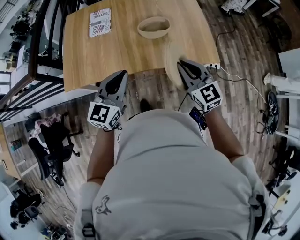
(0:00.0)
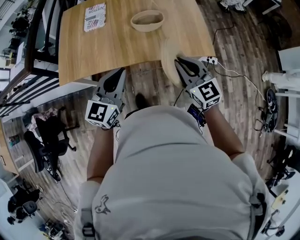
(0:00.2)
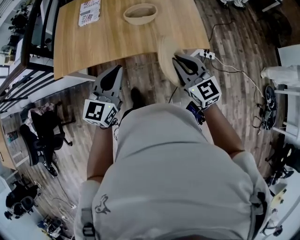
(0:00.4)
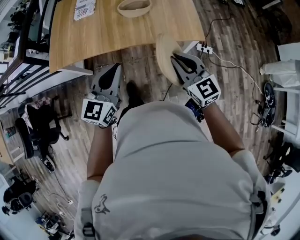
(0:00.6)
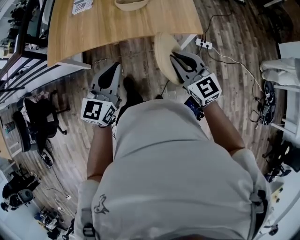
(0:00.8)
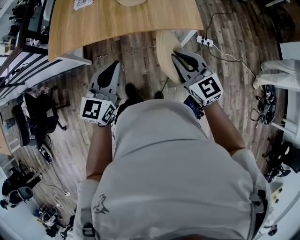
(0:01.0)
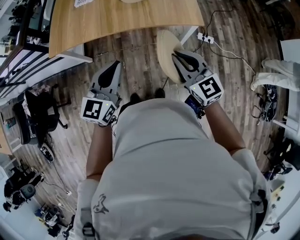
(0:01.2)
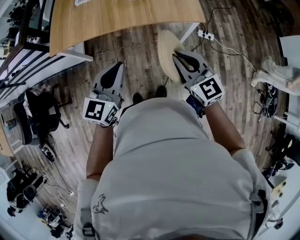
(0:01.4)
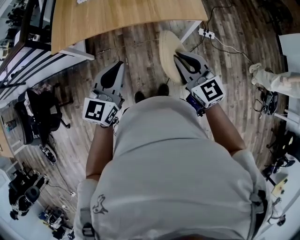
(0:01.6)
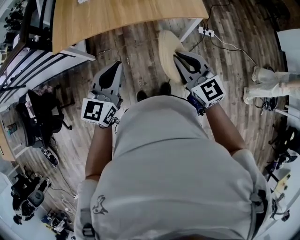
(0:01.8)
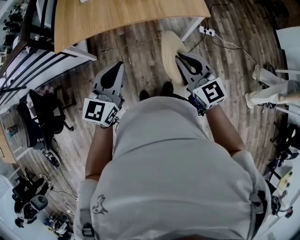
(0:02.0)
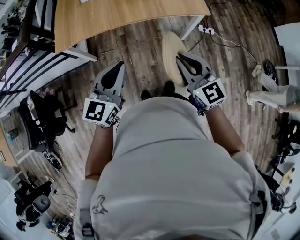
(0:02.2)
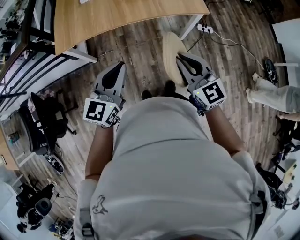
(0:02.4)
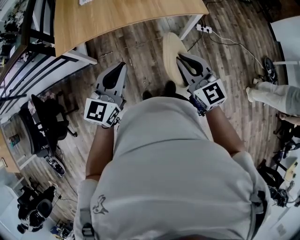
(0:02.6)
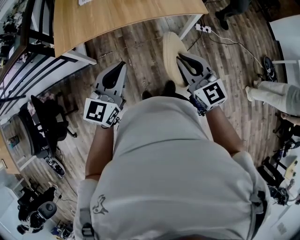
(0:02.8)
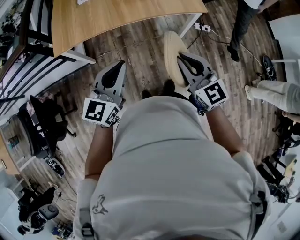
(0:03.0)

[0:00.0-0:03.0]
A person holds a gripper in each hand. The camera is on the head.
0:00.0 to 0:01.6: The grippers both shift backward by about 25 cm.
0:01.6 to 0:03.0: The right gripper heads to the left and backward, covering roughly 10 cm. Meanwhile the left gripper goes roughly 10 cm to the left.

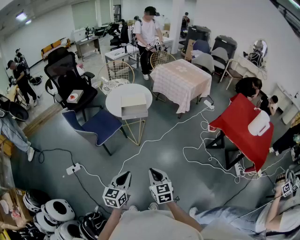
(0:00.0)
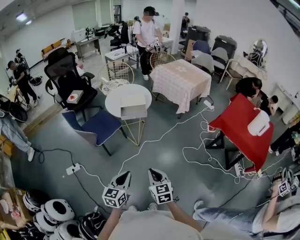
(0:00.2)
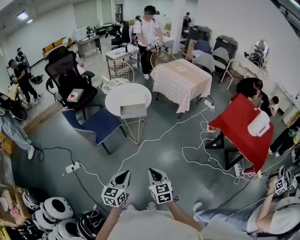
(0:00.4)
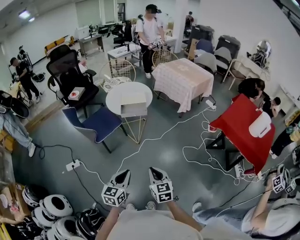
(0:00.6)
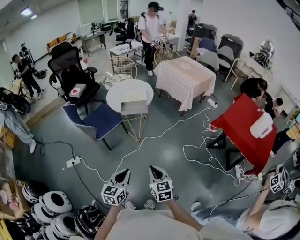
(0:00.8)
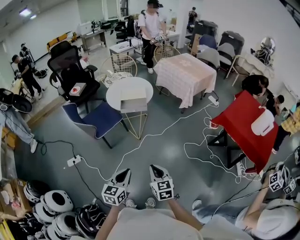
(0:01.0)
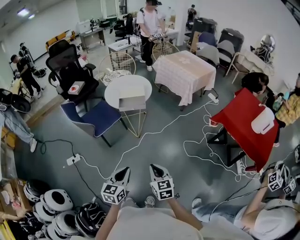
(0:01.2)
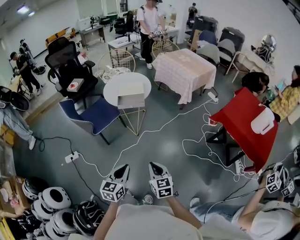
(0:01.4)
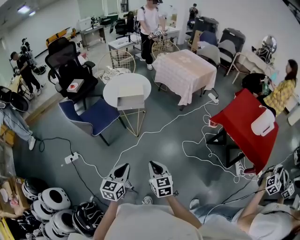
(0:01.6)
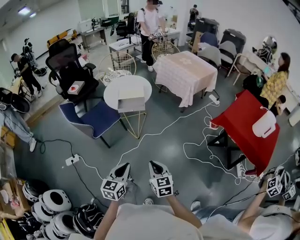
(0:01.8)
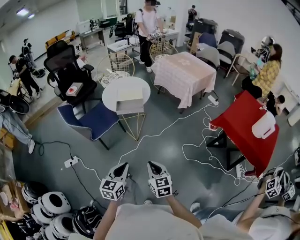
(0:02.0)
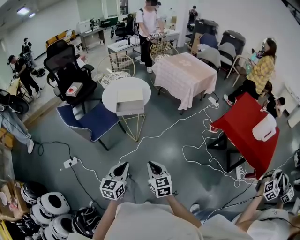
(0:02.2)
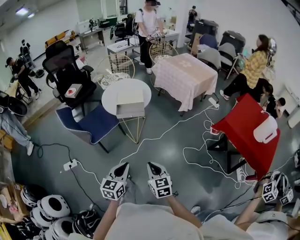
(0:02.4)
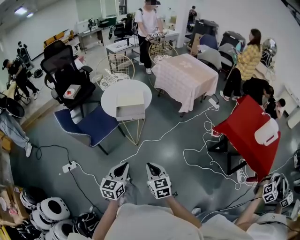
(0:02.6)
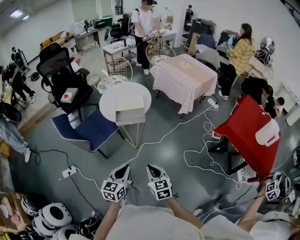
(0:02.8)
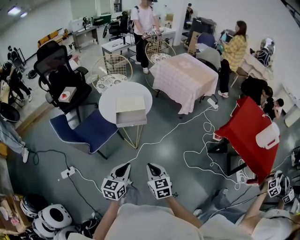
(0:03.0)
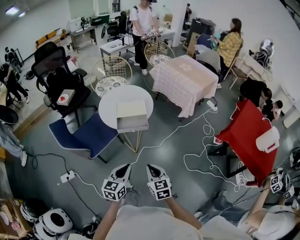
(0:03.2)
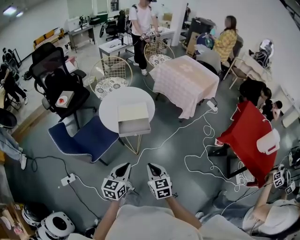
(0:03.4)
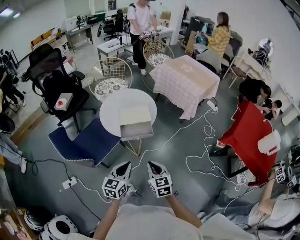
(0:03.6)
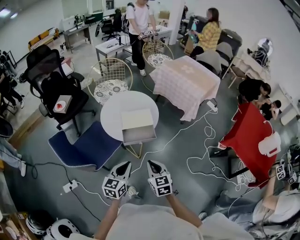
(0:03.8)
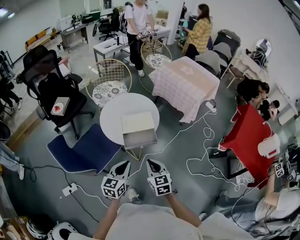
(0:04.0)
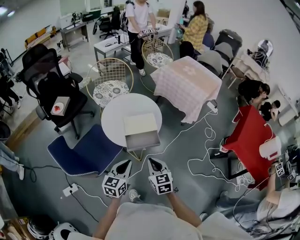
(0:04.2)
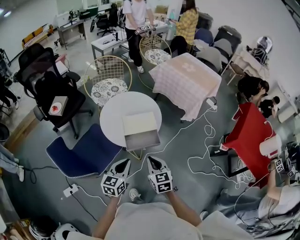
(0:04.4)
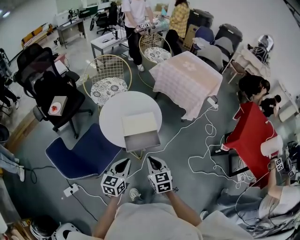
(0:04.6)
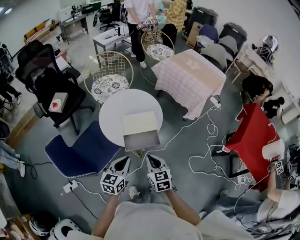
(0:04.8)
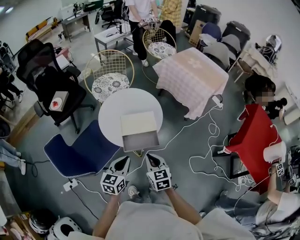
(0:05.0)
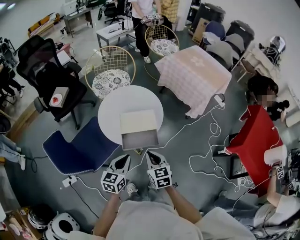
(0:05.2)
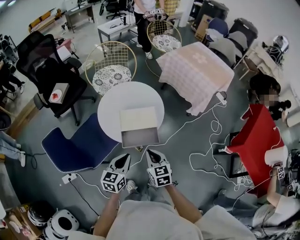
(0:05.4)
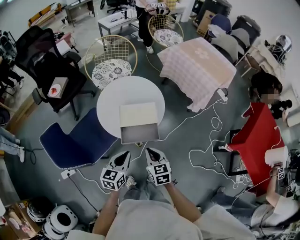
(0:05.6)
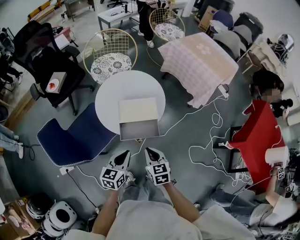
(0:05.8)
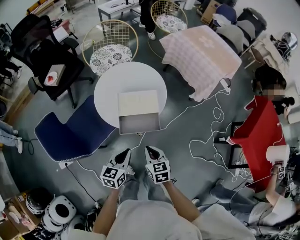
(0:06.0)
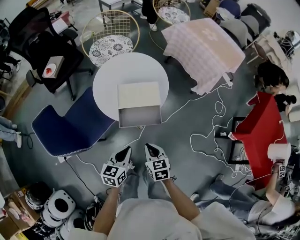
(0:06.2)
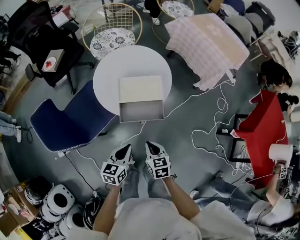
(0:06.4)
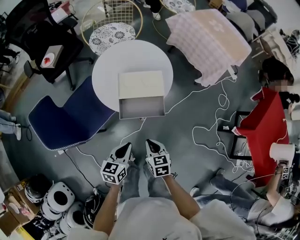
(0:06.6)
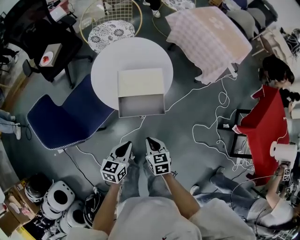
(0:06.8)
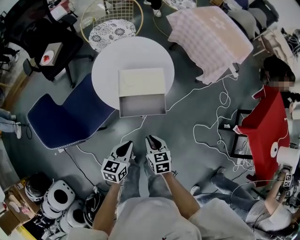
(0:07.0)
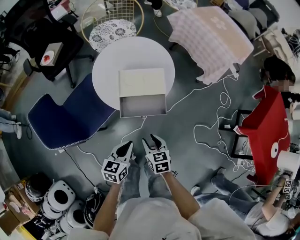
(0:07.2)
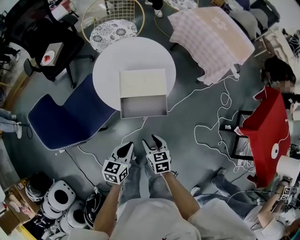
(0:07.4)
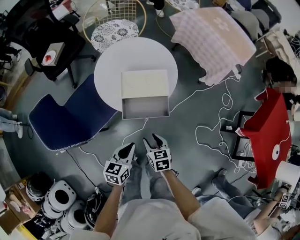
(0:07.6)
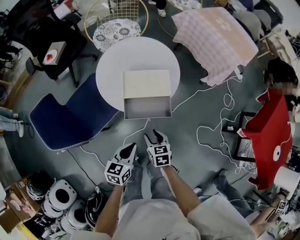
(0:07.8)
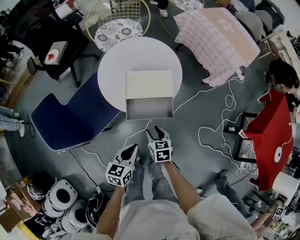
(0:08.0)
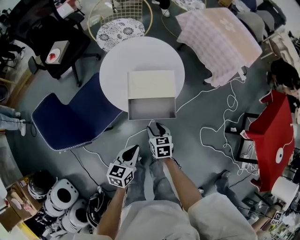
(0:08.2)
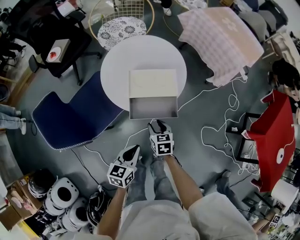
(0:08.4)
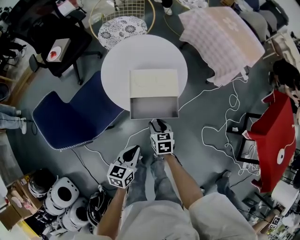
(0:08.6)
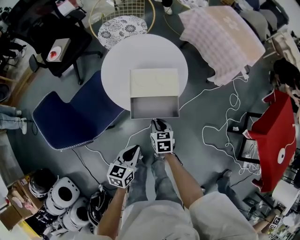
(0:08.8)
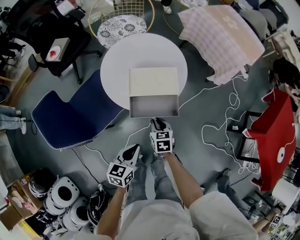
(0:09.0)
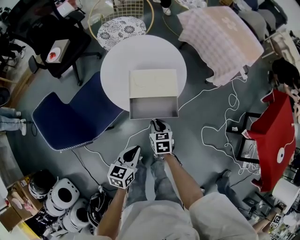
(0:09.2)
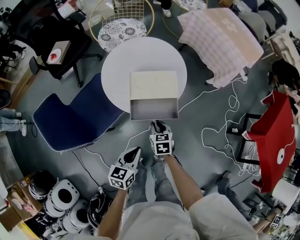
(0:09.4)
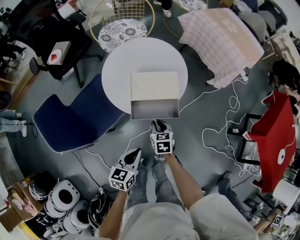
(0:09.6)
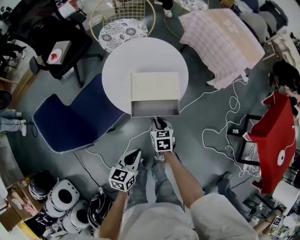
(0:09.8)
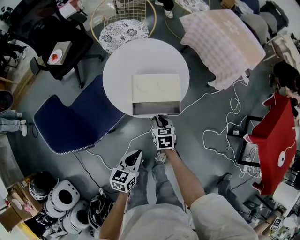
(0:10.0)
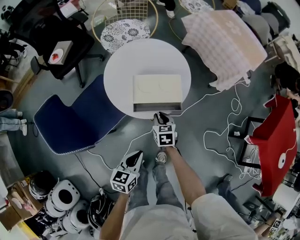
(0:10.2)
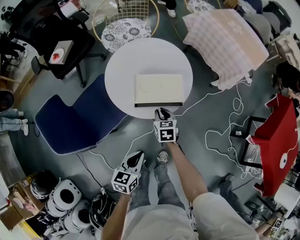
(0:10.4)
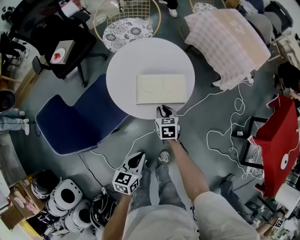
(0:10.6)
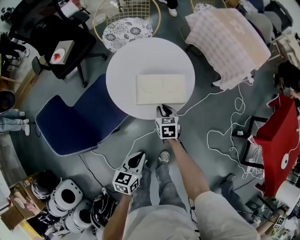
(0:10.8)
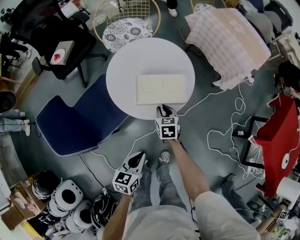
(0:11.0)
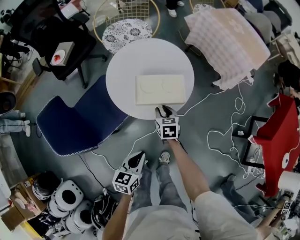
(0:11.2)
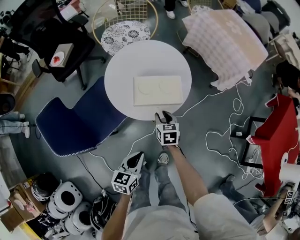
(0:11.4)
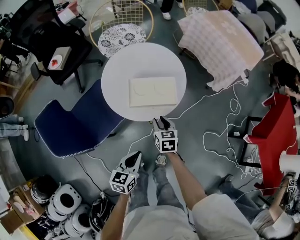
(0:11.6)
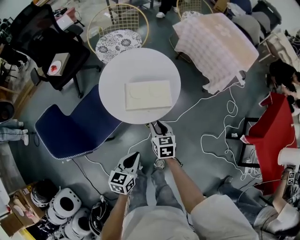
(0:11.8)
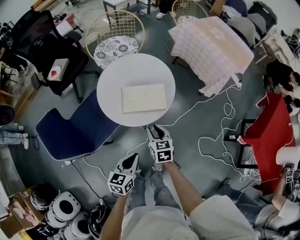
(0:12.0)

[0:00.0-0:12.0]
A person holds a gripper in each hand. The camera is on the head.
0:00.0 to 0:01.6: The grippers both shift to the right by approximately 5 cm.
0:01.6 to 0:03.0: Both grippers travel together forward, roughly 15 cm.
0:03.0 to 0:04.4: The grippers both shift forward and to the left by some 25 cm.
0:04.4 to 0:06.0: Both grippers move downward, roughly 10 cm.
0:06.0 to 0:07.6: The right gripper moves downward, roughly 10 cm, and opens up. Meanwhile the left gripper is displaced downward by about 5 cm.
0:07.6 to 0:09.0: The right gripper heads forward, covering about 10 cm, and closes.
0:09.0 to 0:10.4: The right gripper goes roughly 10 cm forward.
0:10.4 to 0:12.0: The right gripper travels upward and backward by some 10 cm.

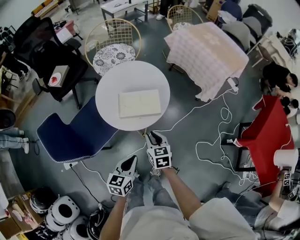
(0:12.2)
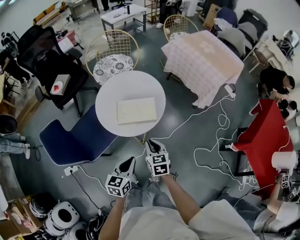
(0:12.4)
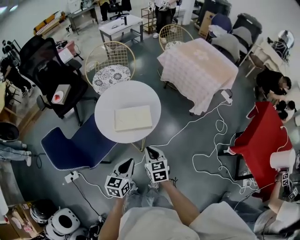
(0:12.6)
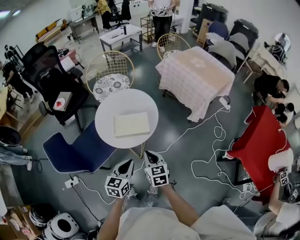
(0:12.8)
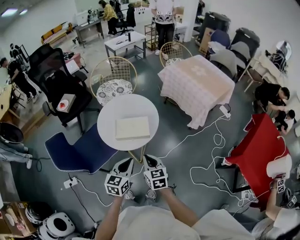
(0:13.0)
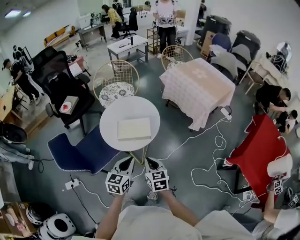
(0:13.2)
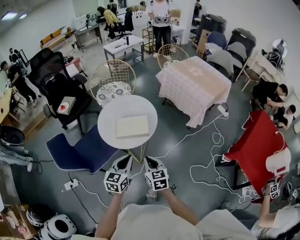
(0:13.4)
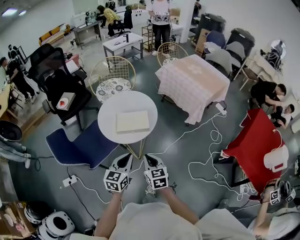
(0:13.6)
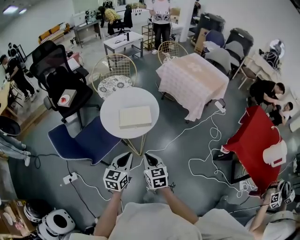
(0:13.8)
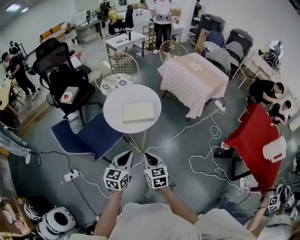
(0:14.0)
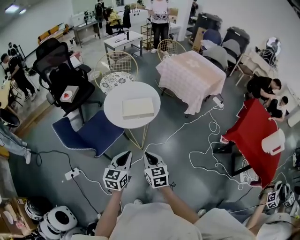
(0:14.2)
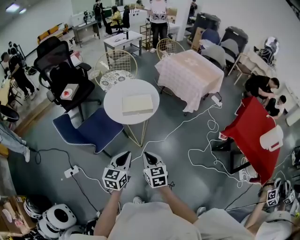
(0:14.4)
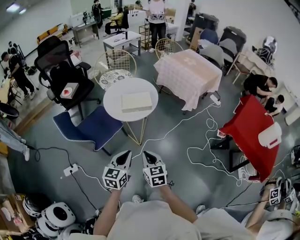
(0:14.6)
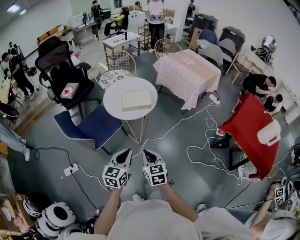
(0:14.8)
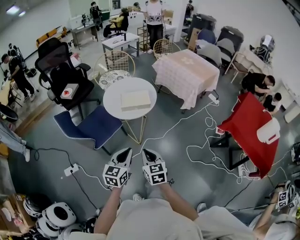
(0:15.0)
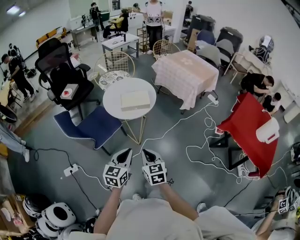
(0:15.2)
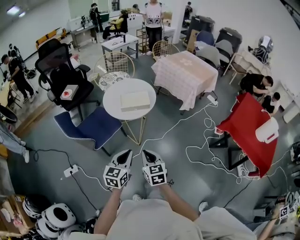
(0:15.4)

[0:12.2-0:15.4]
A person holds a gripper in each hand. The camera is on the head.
0:12.2 to 0:13.8: The right gripper moves backward and upward, some 20 cm, and closes its fingers, while the left gripper shifts some 10 cm upward.
0:13.8 to 0:15.4: The two grippers go approximately 15 cm backward.

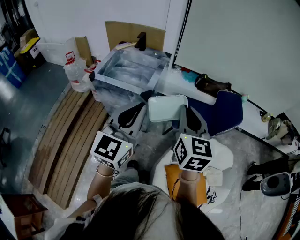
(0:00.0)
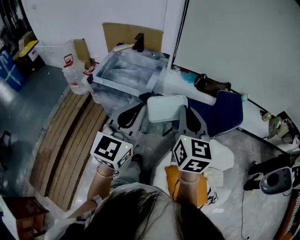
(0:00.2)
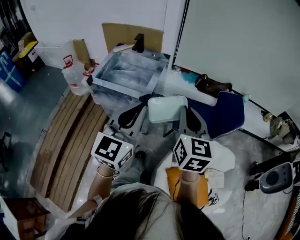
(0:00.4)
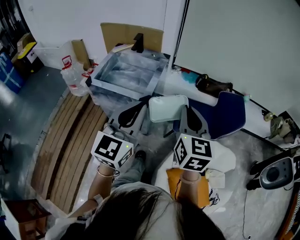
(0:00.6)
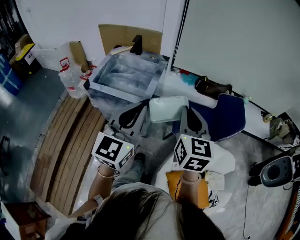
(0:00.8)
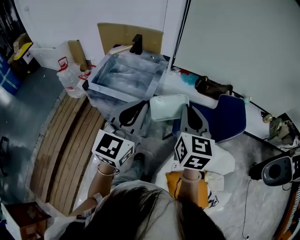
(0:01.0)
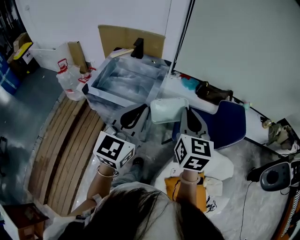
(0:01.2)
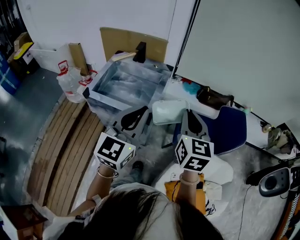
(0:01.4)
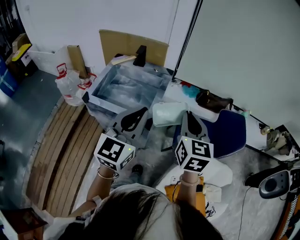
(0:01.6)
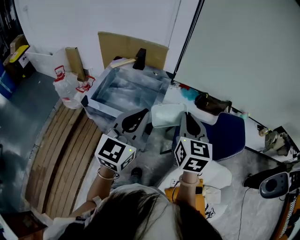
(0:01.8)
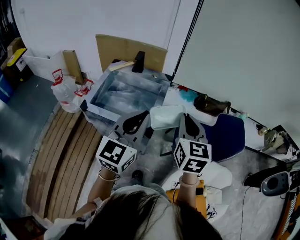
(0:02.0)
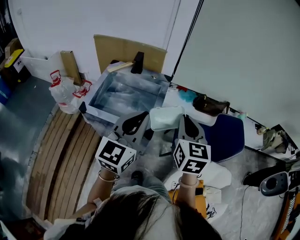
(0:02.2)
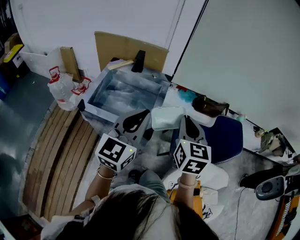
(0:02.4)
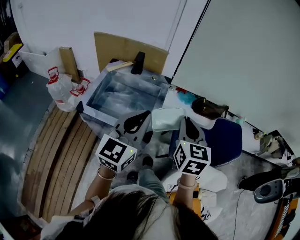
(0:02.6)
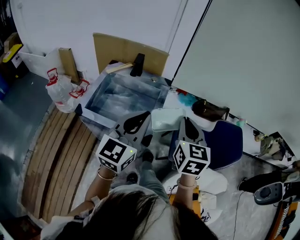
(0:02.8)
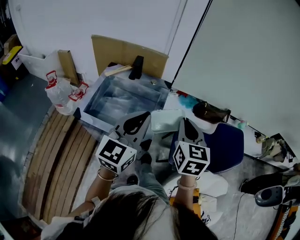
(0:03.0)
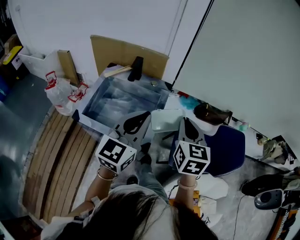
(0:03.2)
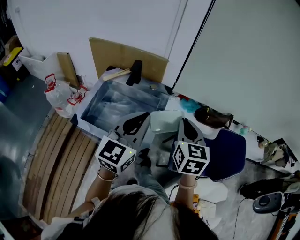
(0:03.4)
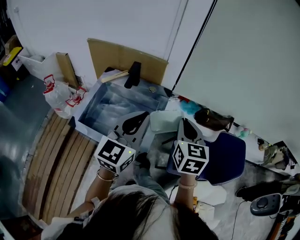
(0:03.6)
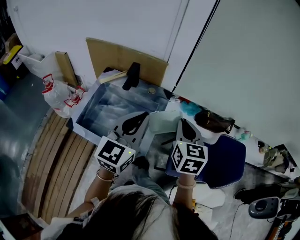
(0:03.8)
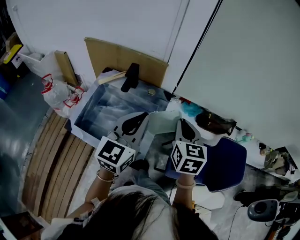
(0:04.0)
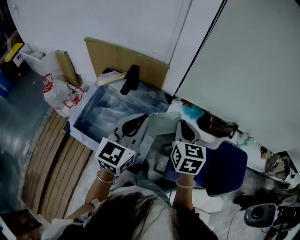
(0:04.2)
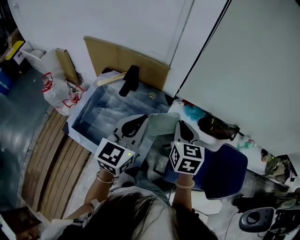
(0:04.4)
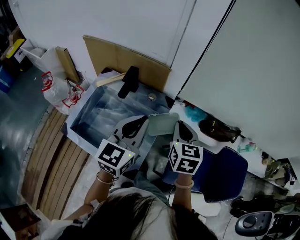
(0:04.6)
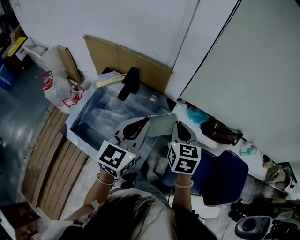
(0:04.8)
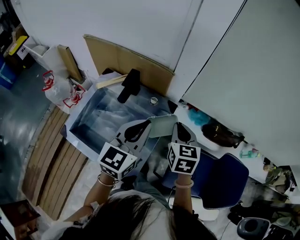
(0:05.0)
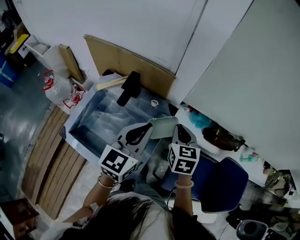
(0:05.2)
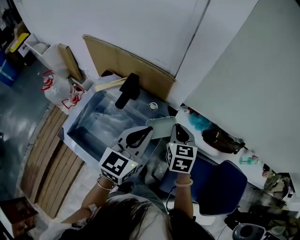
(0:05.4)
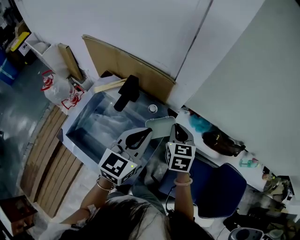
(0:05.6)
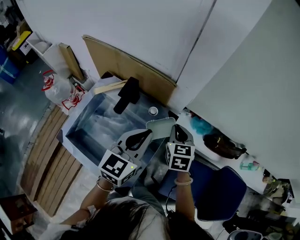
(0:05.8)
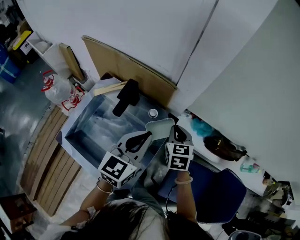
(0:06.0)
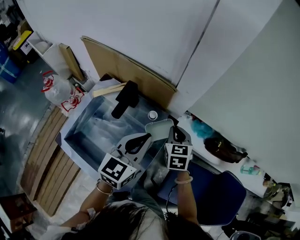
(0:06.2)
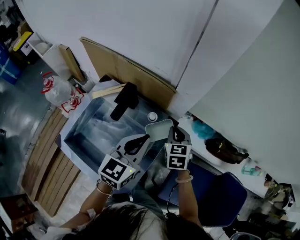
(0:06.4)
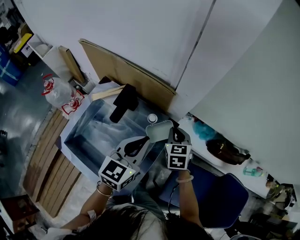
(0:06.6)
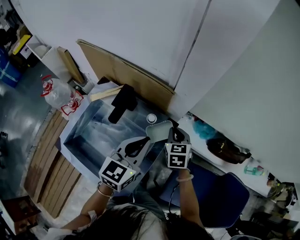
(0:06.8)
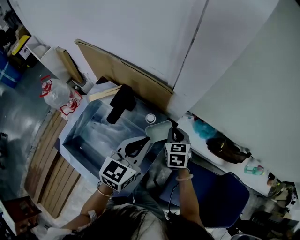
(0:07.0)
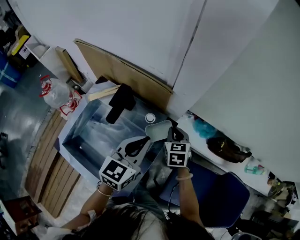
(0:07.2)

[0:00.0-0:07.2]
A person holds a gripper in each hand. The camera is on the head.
0:00.0 to 0:01.4: Both grippers move forward, about 15 cm.
0:01.4 to 0:02.8: The two grippers go about 10 cm forward and to the left.
0:02.8 to 0:04.4: Both grippers move forward, some 20 cm.
0:04.4 to 0:05.8: Both grippers travel together forward and downward, approximately 15 cm.
0:05.8 to 0:07.2: The right gripper moves downward, some 10 cm. The left gripper shifts approximately 5 cm downward.
